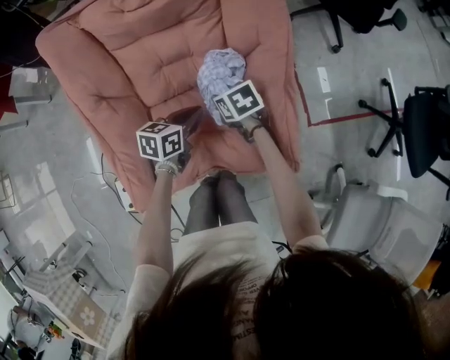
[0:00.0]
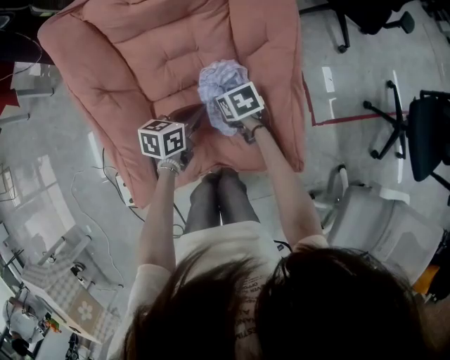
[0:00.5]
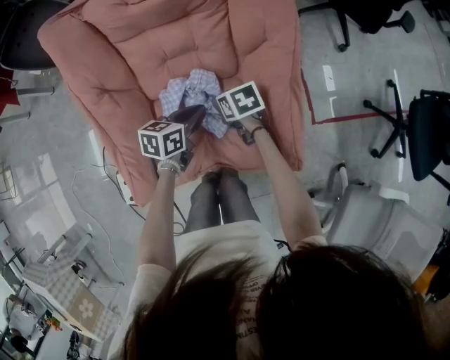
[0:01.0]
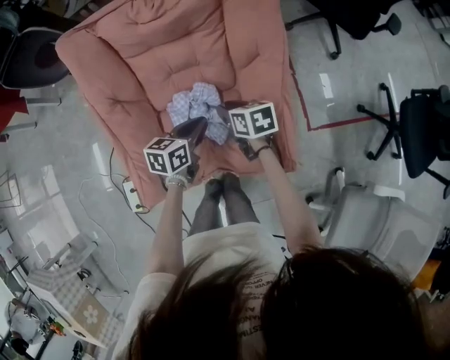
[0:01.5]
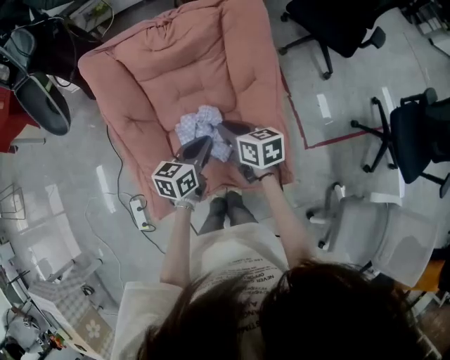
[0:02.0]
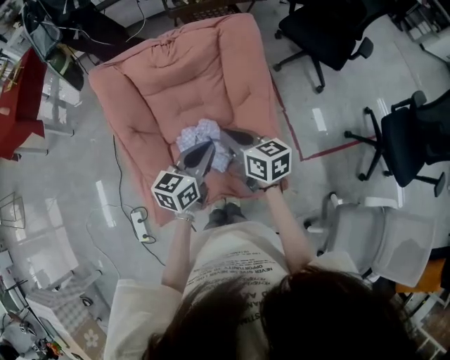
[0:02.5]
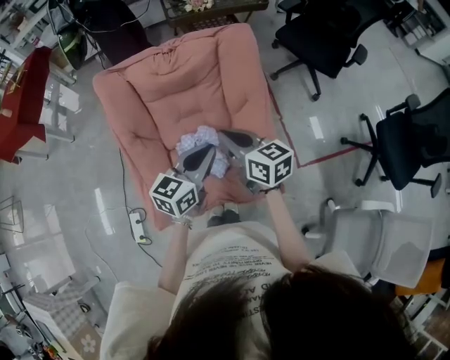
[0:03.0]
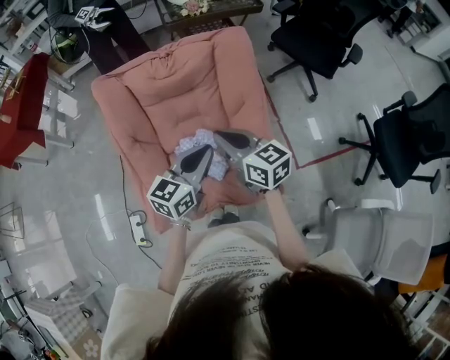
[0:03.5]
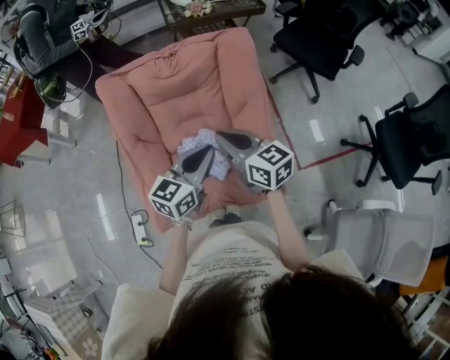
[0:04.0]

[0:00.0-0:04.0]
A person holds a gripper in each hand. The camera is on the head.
0:00.0 to 0:02.0: The two grippers go approximately 15 cm upward. The right gripper turns by about 30 degrees, and opens, then closes once more.
0:02.0 to 0:04.0: The two grippers go approximately 15 cm upward. The left gripper swivels about 20 degrees, while the right gripper changes its angle by about 20 degrees.

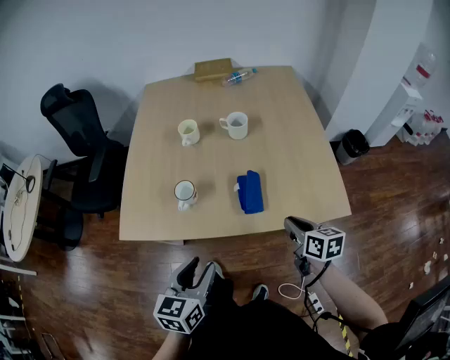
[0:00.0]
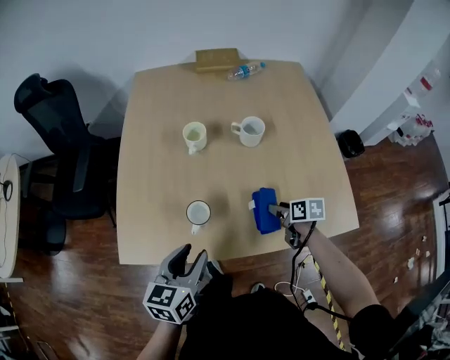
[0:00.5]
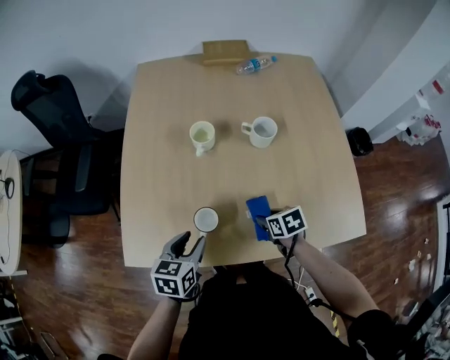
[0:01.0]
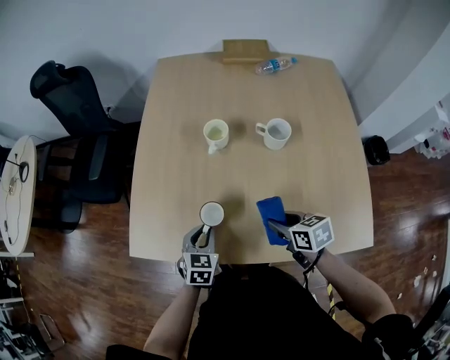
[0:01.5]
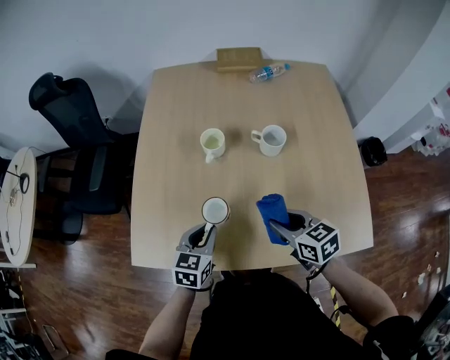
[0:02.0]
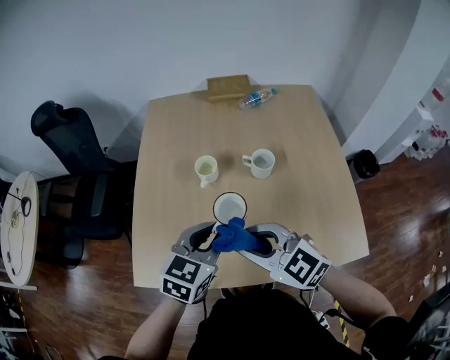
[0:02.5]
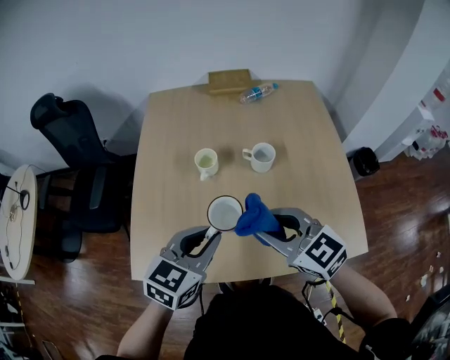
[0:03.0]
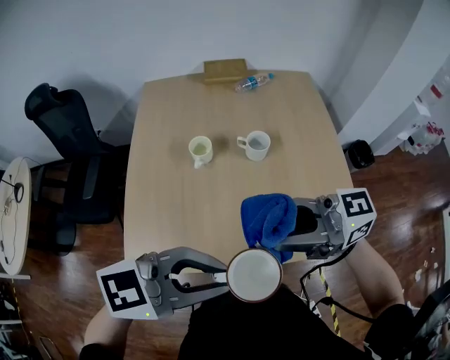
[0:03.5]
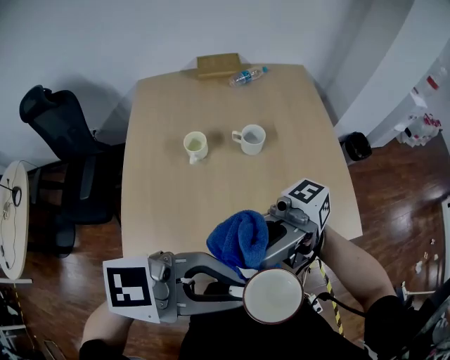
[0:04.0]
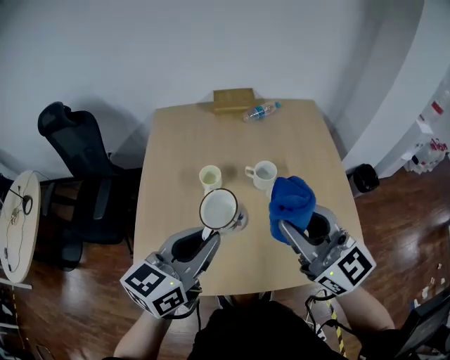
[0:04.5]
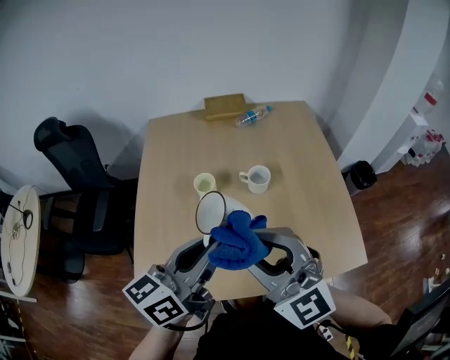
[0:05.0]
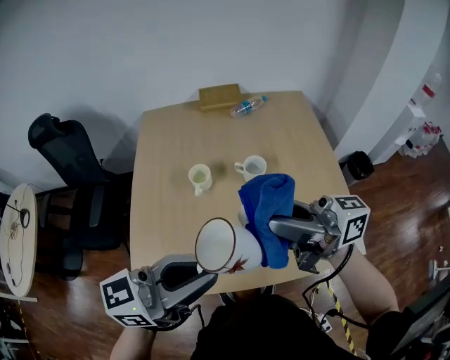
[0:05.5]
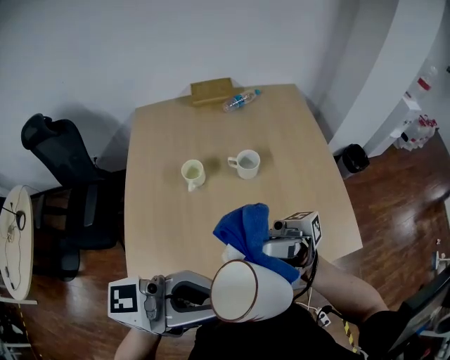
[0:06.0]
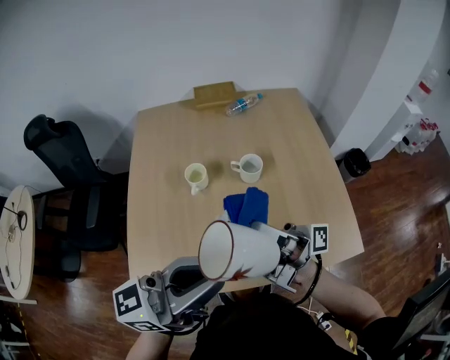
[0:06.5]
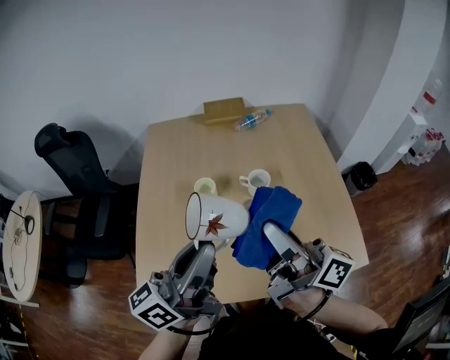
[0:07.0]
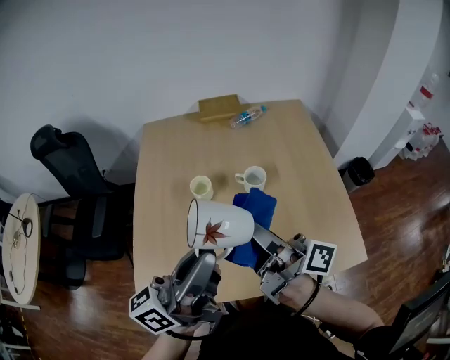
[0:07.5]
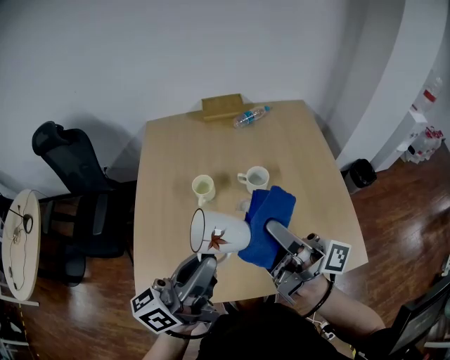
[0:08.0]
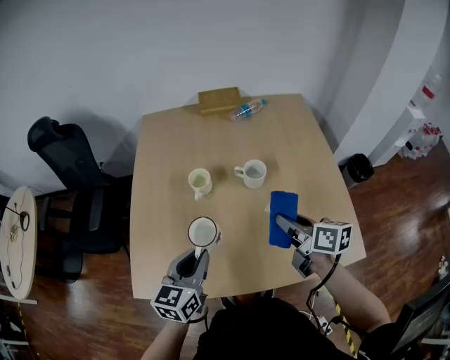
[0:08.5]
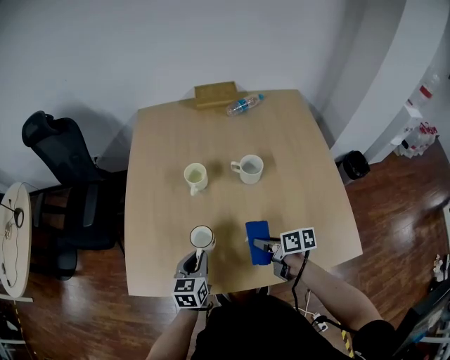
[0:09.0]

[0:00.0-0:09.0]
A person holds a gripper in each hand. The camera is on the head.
0:00.0 to 0:02.0: The left gripper moves forward, some 25 cm, and closes up, while the right gripper heads forward and to the left, covering some 20 cm, and turns by some 30 degrees.
0:02.0 to 0:04.5: Both grippers move upward, about 25 cm. The right gripper tilts its fingers about 40 degrees upward. Meanwhile the left gripper rotates about 30 degrees.
0:04.5 to 0:07.0: The left gripper heads upward, covering some 5 cm, and rotates approximately 40 degrees, while the right gripper rolls clockwise, seen from behind, by some 60 degrees.
0:07.0 to 0:09.0: The two grippers go some 35 cm downward. The right gripper tips its fingers downward by about 60 degrees; the left gripper points its fingers approximately 50 degrees further downward.

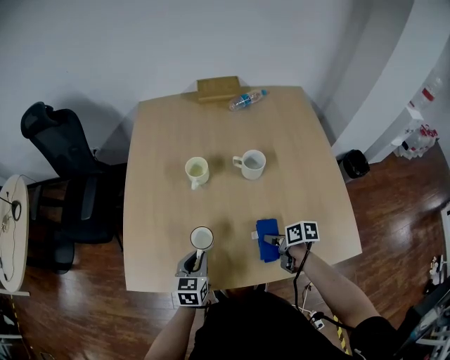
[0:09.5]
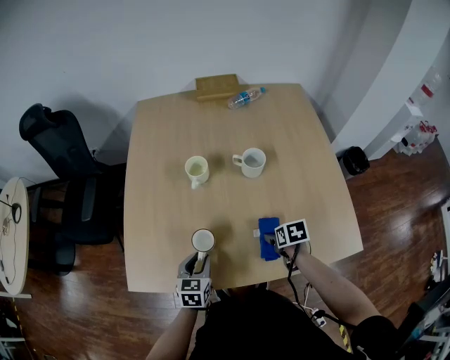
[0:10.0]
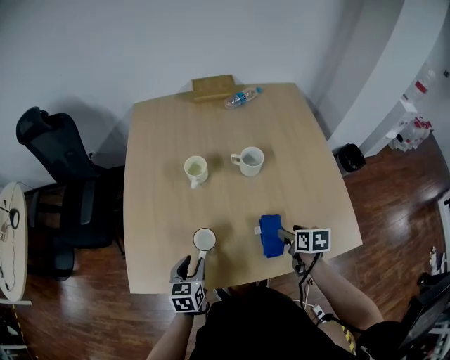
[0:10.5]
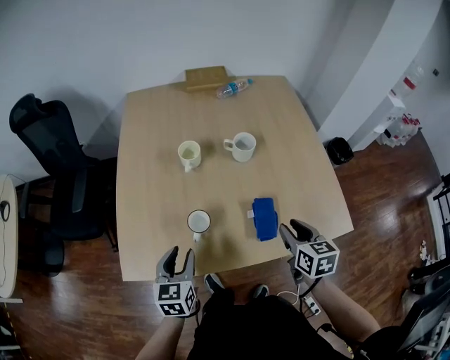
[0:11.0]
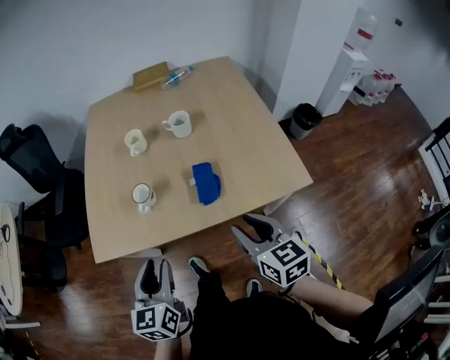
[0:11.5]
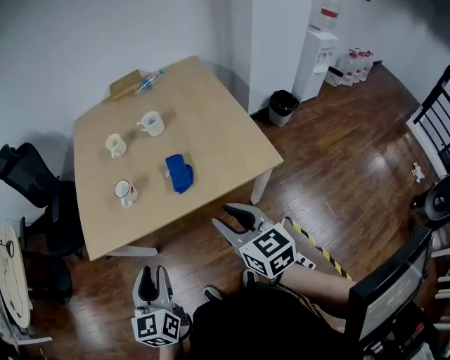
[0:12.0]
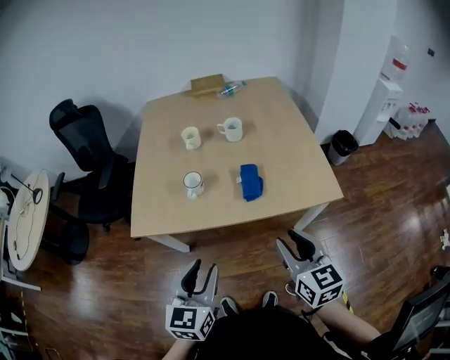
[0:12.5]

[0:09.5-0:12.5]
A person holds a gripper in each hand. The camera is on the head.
0:09.5 to 0:11.0: The left gripper is displaced upward and to the left by roughly 10 cm, and opens; the right gripper moves upward, some 20 cm, swivels roughly 40 degrees, and opens, then closes again.
0:11.0 to 0:12.5: The left gripper moves backward, upward and to the right, some 30 cm; the right gripper heads backward and upward, covering roughly 25 cm, and rotates roughly 20 degrees.

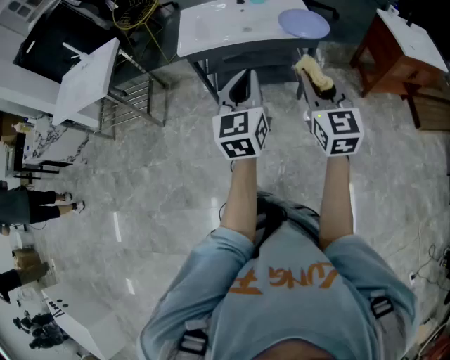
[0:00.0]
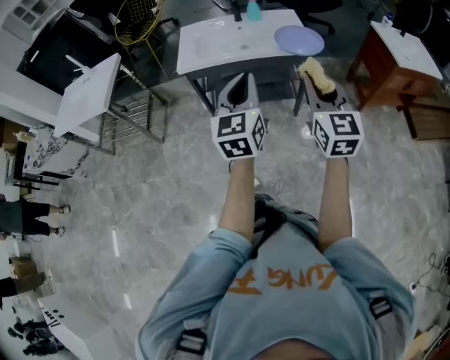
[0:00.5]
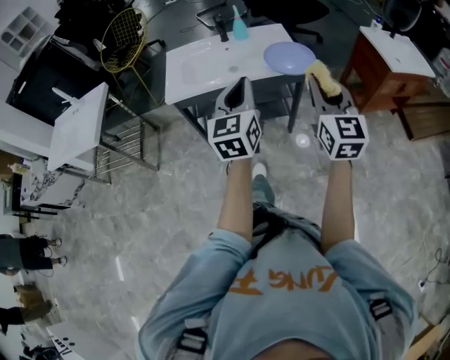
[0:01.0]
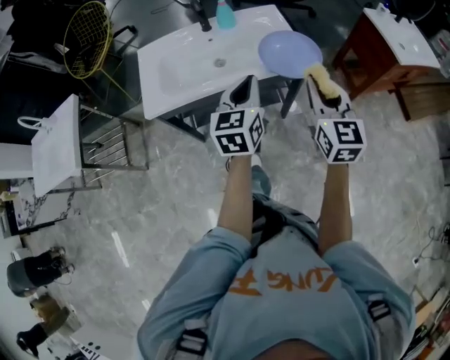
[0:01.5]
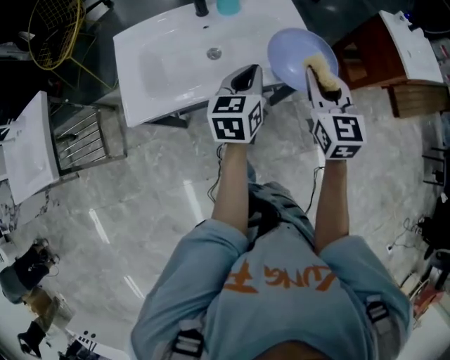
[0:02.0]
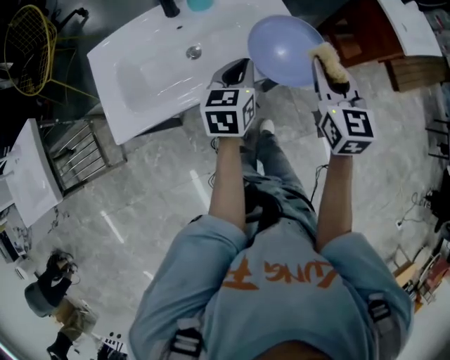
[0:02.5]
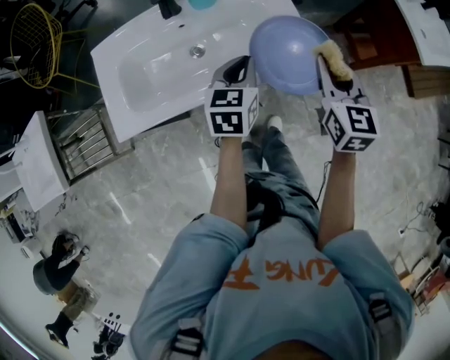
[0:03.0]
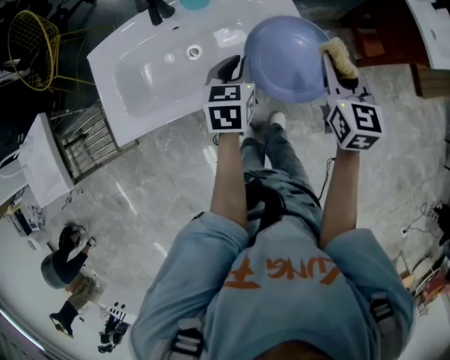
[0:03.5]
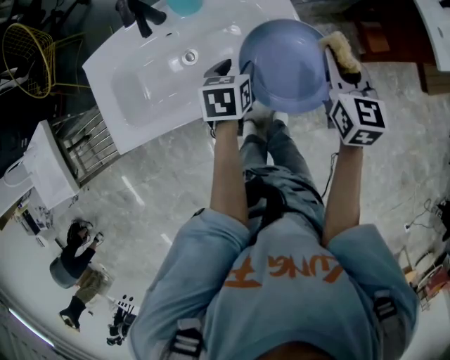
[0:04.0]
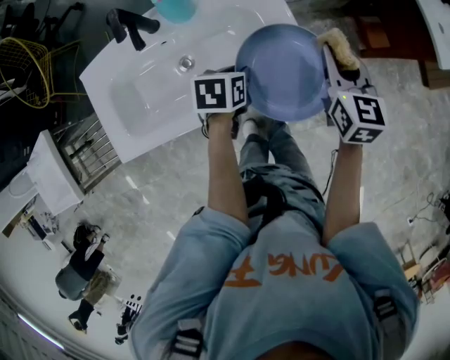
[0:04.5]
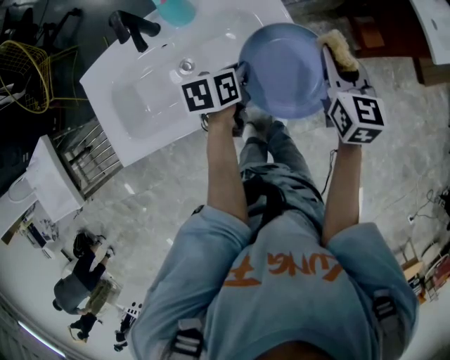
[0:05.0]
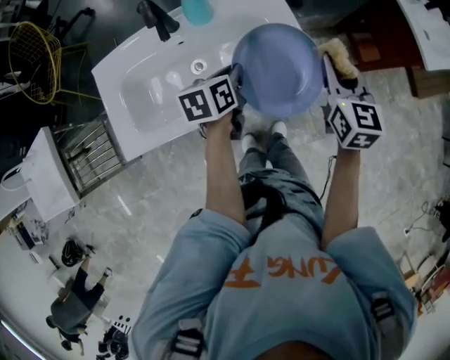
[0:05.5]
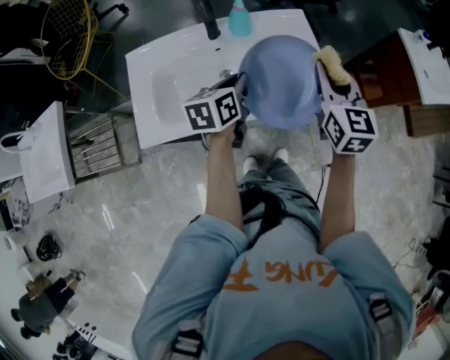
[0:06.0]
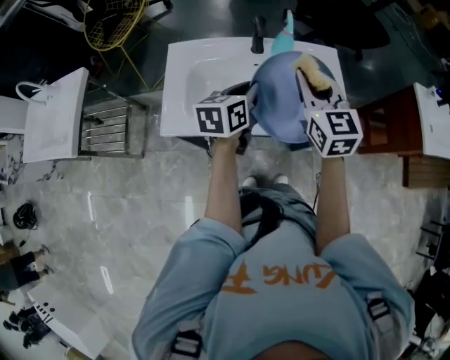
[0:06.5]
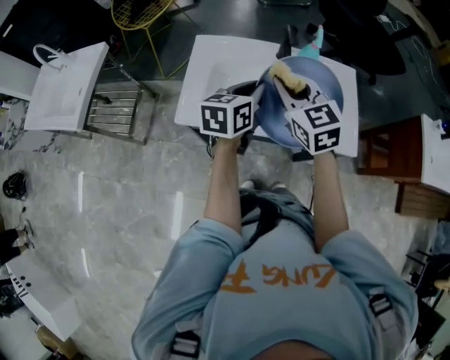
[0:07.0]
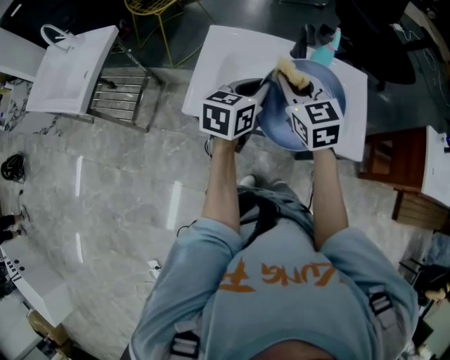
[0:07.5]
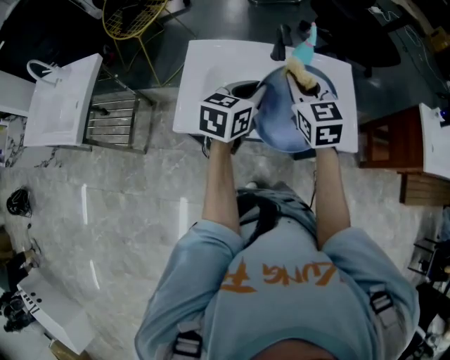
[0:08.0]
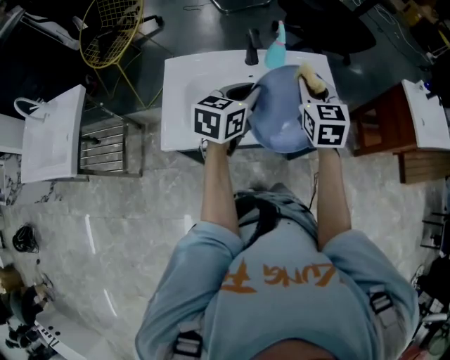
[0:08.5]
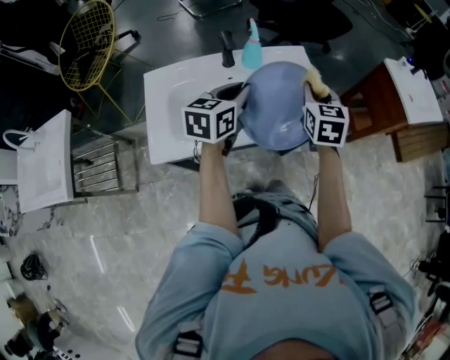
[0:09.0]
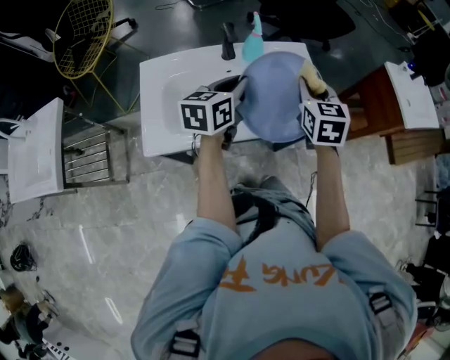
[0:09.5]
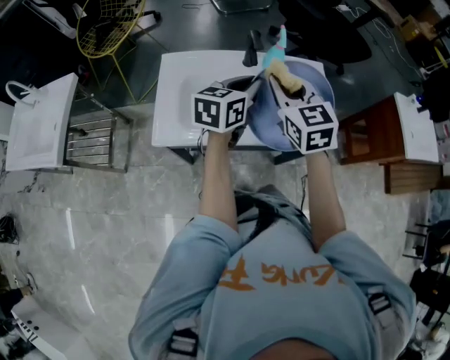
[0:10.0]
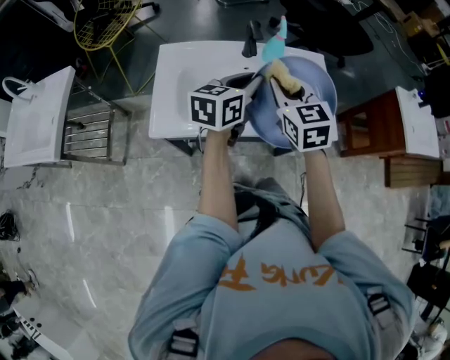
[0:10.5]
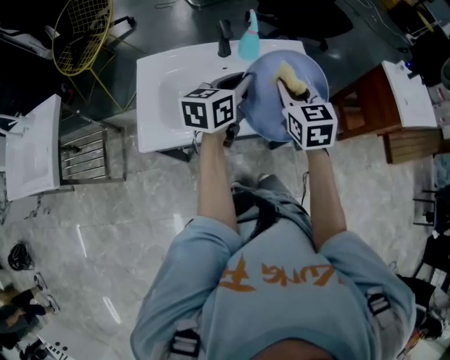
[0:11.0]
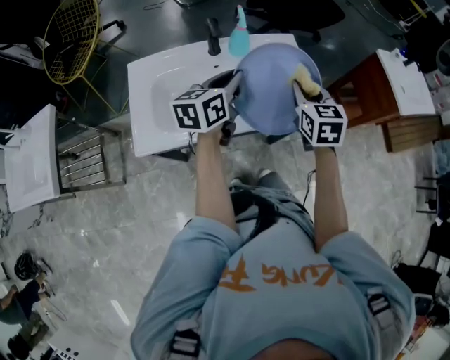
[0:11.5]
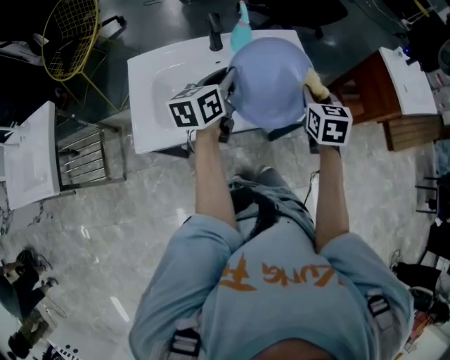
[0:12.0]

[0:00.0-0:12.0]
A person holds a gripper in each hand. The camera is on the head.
0:00.0 to 0:02.0: The pair of grippers is taken forward, roughly 40 cm. The left gripper changes its angle by about 30 degrees.
0:02.0 to 0:04.0: The left gripper goes roughly 20 cm downward and forward, tilts its fingers approximately 30 degrees downward, and opens up; the right gripper travels forward, to the right and downward by roughly 25 cm.
0:04.0 to 0:06.0: The left gripper shifts approximately 15 cm upward and to the left, turns by about 30 degrees, and closes its fingers, while the right gripper shifts roughly 15 cm to the left, upward and backward.
0:06.0 to 0:08.0: The left gripper travels to the left and upward by some 15 cm, while the right gripper travels to the left by approximately 25 cm, and changes its angle by roughly 20 degrees.
0:08.0 to 0:10.0: The left gripper changes place by about 5 cm, while the right gripper goes to the right and returns, approximately 20 cm each way.
0:10.0 to 0:12.0: The left gripper changes place by approximately 5 cm; the right gripper is displaced to the right and downward by roughly 25 cm, and rotates roughly 30 degrees.
